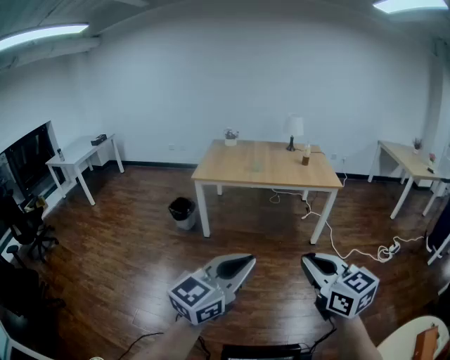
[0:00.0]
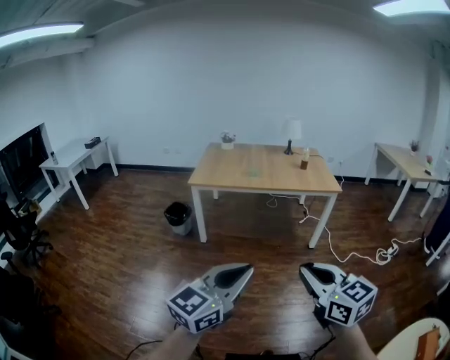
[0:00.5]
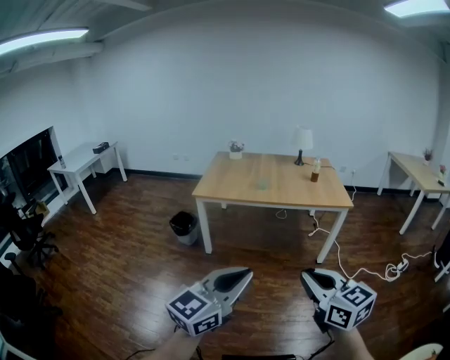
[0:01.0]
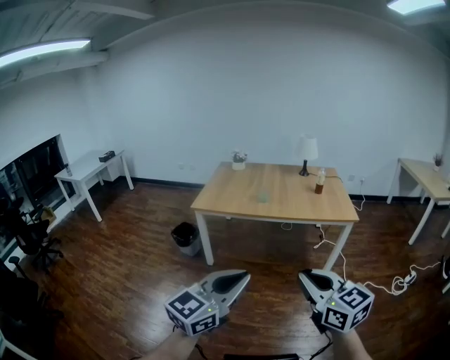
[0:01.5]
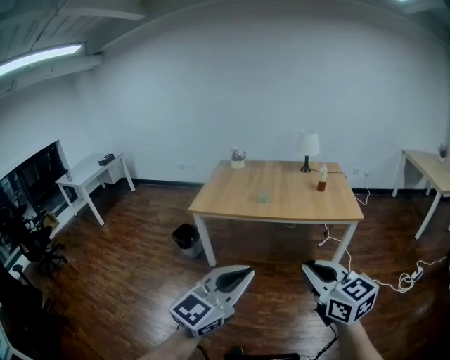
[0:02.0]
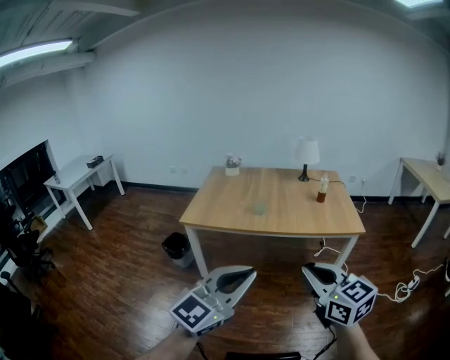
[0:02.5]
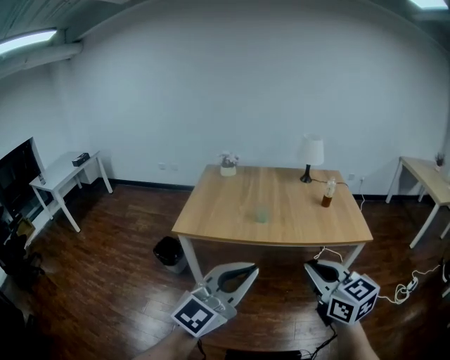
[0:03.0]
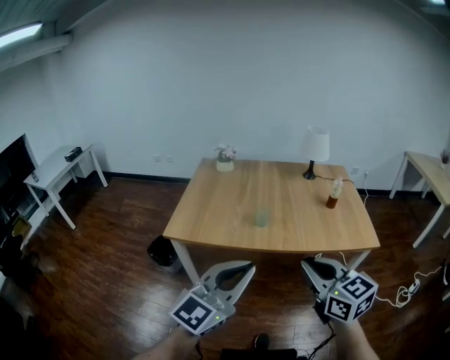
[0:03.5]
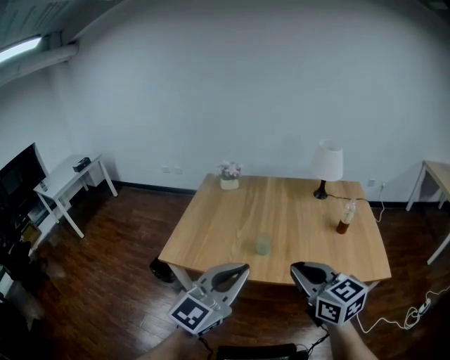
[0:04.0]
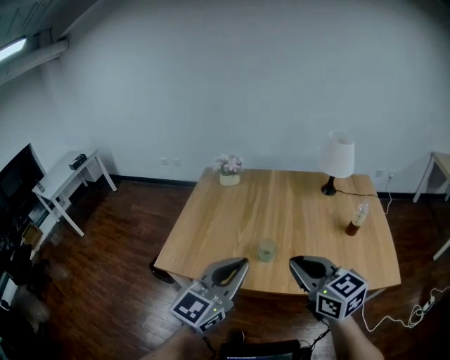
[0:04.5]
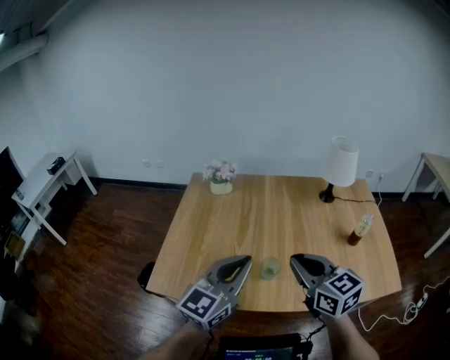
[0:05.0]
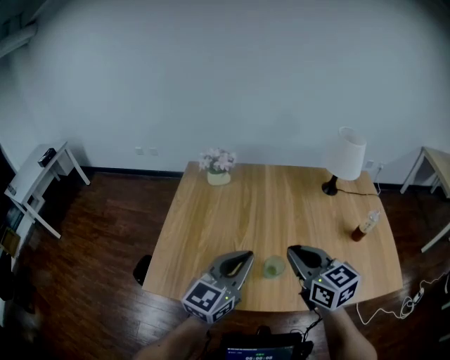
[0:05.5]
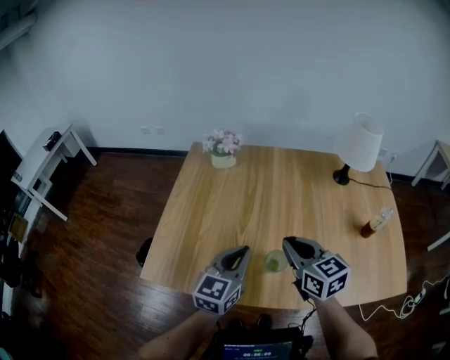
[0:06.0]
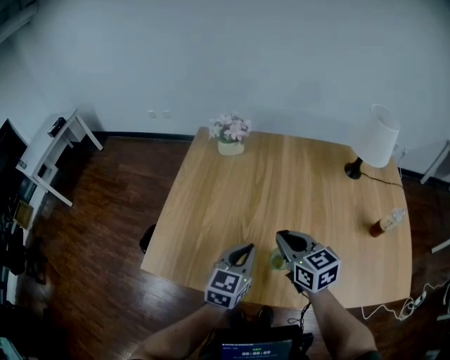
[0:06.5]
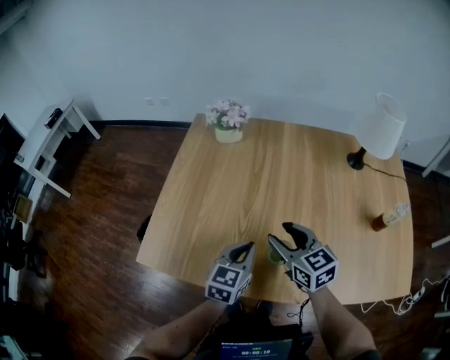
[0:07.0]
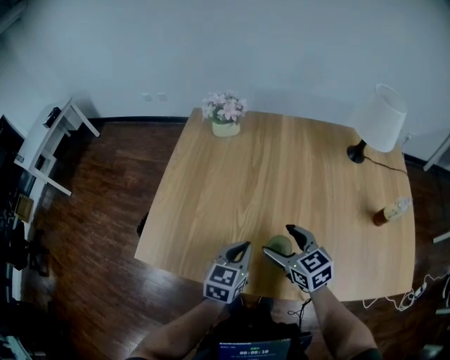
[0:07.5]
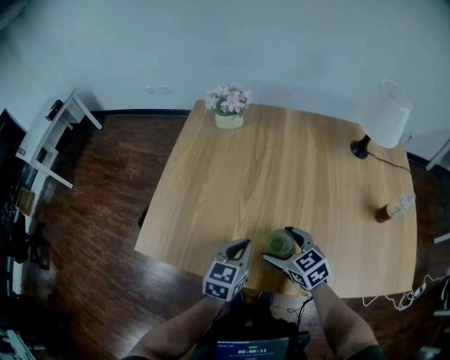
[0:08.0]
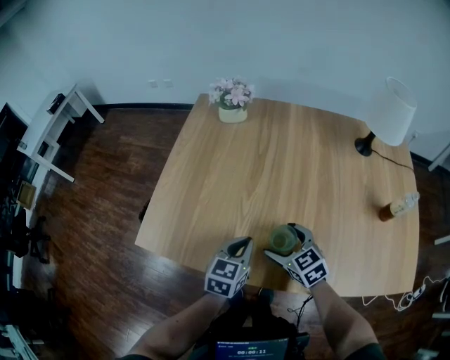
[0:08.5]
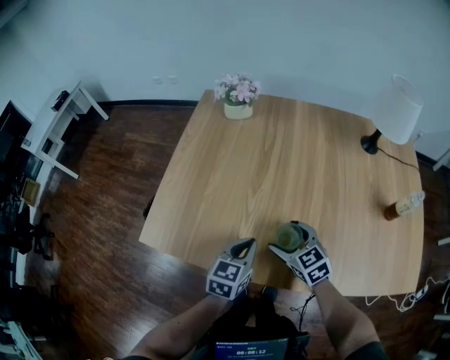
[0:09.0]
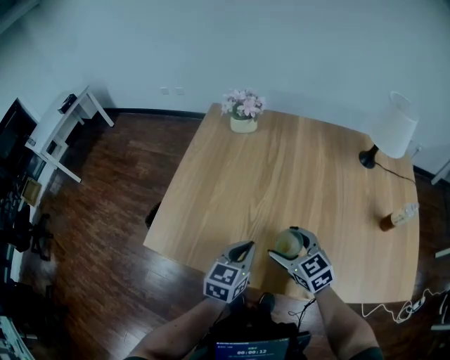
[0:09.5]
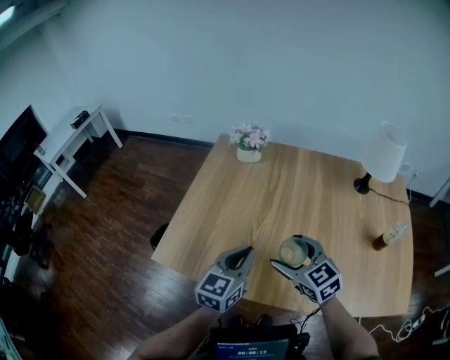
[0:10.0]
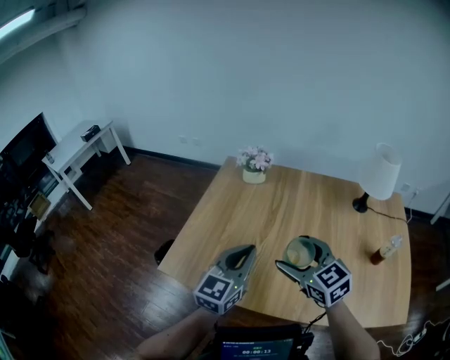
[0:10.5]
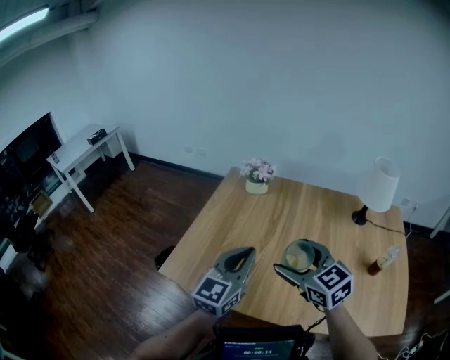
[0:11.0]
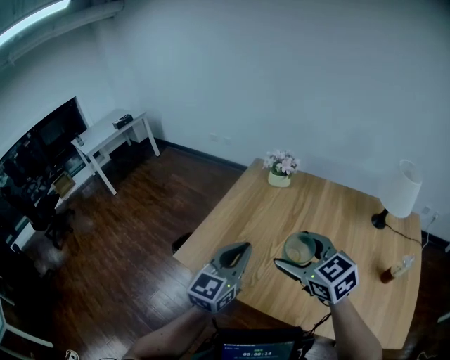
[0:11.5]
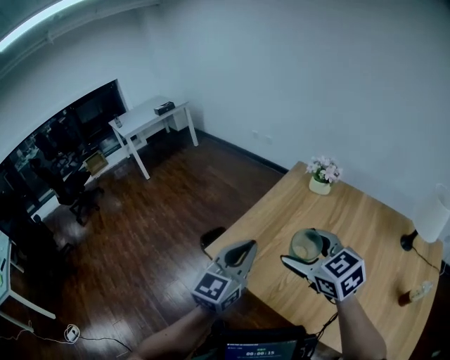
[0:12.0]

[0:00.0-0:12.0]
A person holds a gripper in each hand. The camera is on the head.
0:00.0 to 0:02.0: The grippers both shift forward by some 25 cm.
0:02.0 to 0:04.0: Both grippers are carried forward, roughly 50 cm.
0:04.0 to 0:06.0: Both grippers travel together forward and downward, roughly 35 cm. The left gripper rotates roughly 30 degrees.
0:06.0 to 0:08.0: Both grippers travel together downward, approximately 15 cm. The right gripper rotates some 20 degrees, and opens its fingers.
0:08.0 to 0:10.0: The two grippers go some 10 cm upward.
0:10.0 to 0:12.0: Both grippers travel together to the left and upward, roughly 20 cm. The left gripper rotates roughly 30 degrees, while the right gripper swivels about 20 degrees.

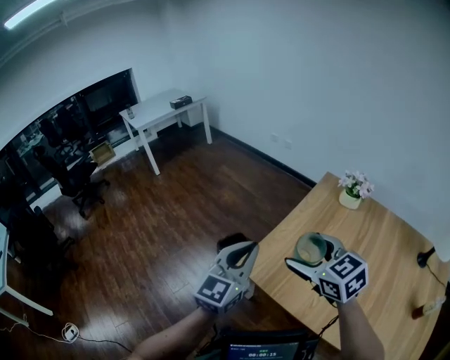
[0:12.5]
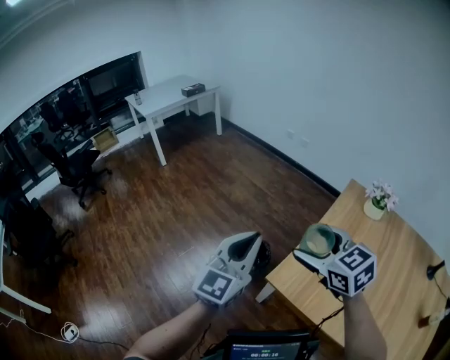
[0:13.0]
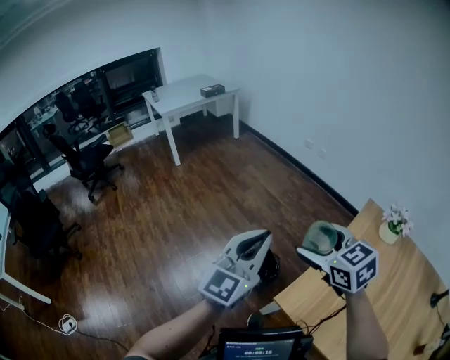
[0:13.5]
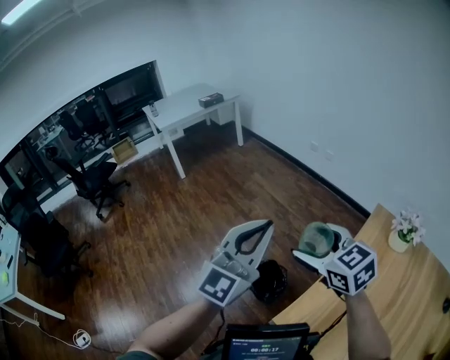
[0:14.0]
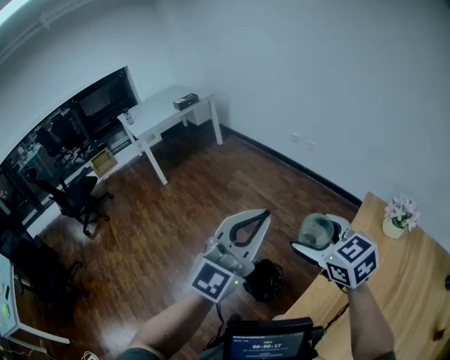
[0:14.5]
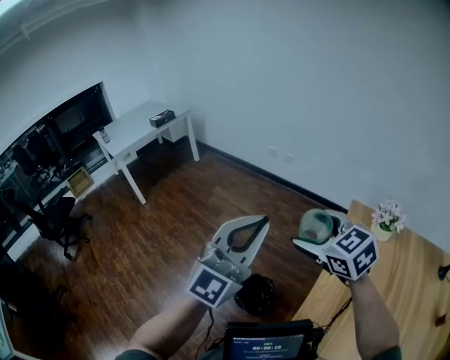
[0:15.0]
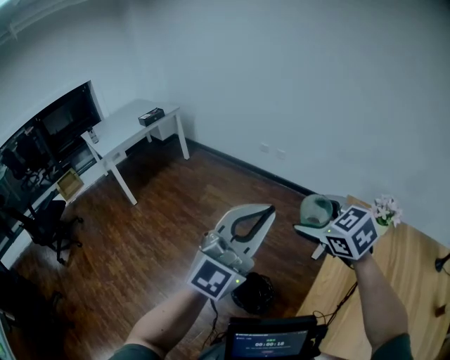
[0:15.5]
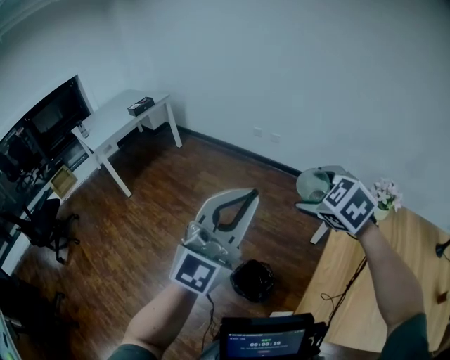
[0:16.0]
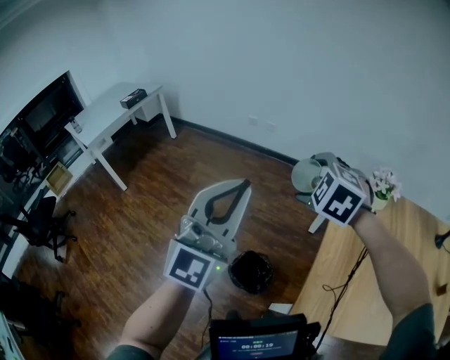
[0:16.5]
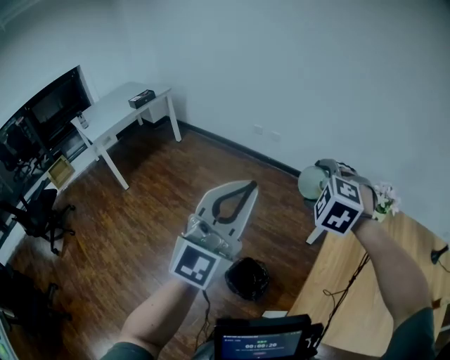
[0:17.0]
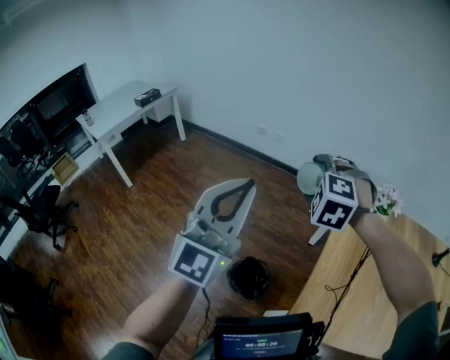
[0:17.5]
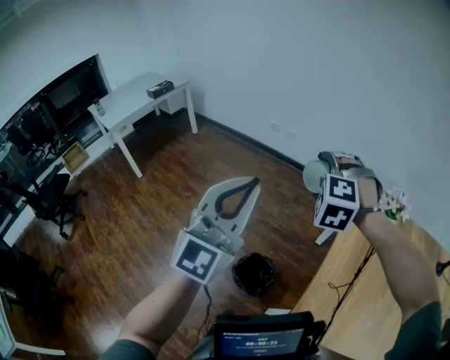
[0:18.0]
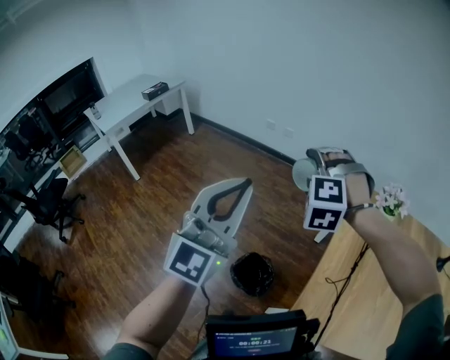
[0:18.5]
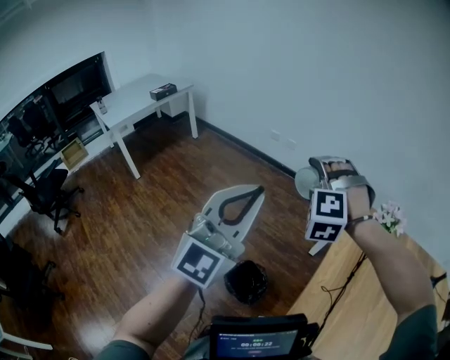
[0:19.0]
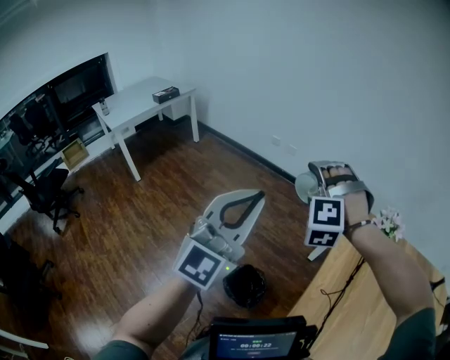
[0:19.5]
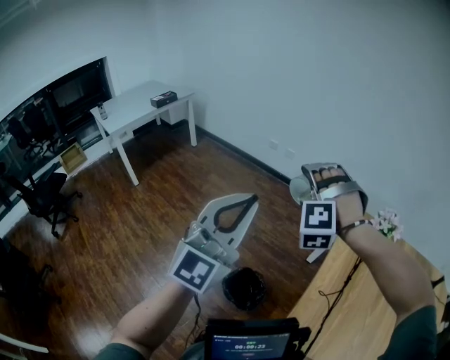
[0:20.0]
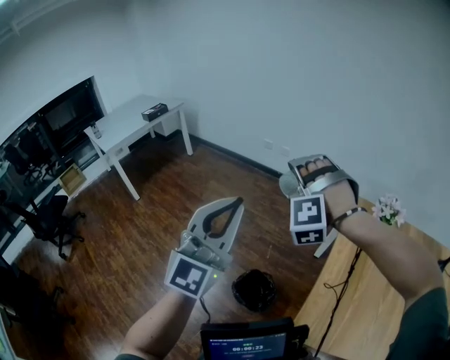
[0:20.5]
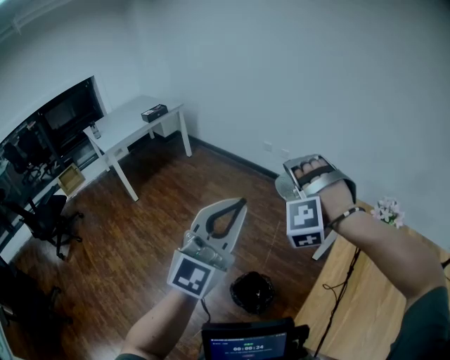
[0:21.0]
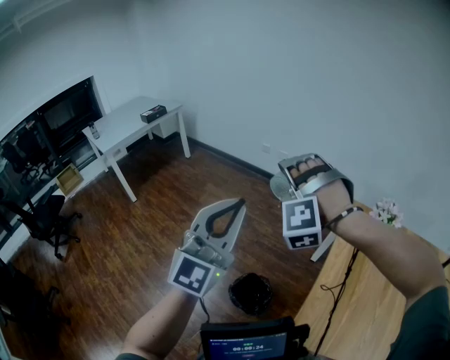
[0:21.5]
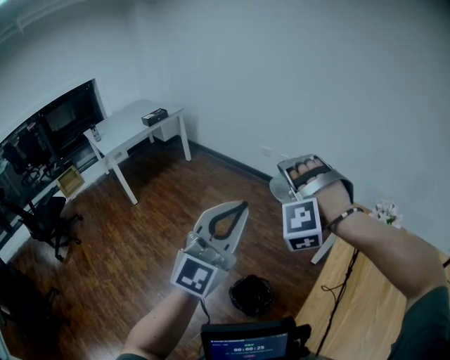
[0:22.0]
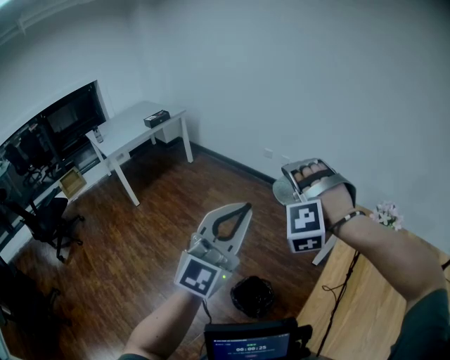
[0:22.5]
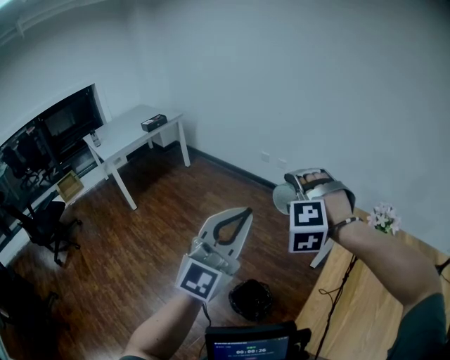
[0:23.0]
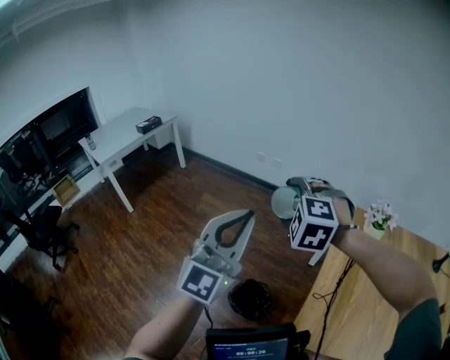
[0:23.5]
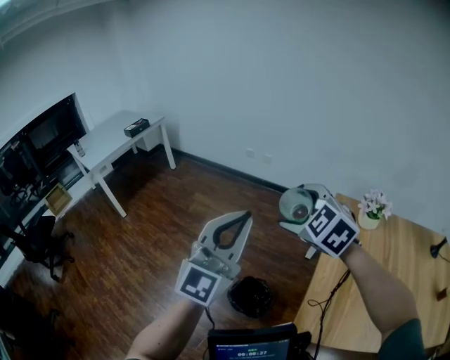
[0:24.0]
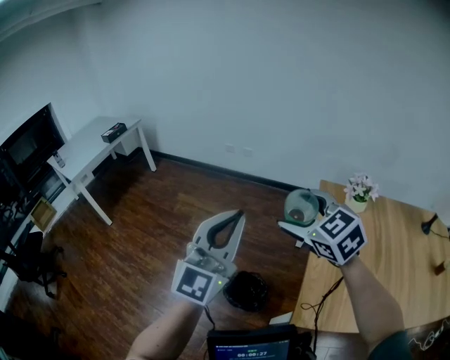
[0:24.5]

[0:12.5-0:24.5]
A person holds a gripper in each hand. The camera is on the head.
0:12.5 to 0:14.5: The left gripper goes roughly 30 cm forward, to the left and upward, and swivels some 30 degrees; the right gripper shifts approximately 30 cm forward and to the left.
0:14.5 to 0:16.5: The left gripper ends up some 10 cm from where it was, while the right gripper shifts by about 15 cm, and rotates approximately 50 degrees.
0:16.5 to 0:18.5: The right gripper rotates some 30 degrees.
0:18.5 to 0:20.5: The grippers move only a little.
0:20.5 to 0:22.5: The grippers make only small movements.
0:22.5 to 0:24.5: The right gripper goes approximately 10 cm to the right and backward, and rotates around the line of its fingers by about 80 degrees, clockwise from behind.

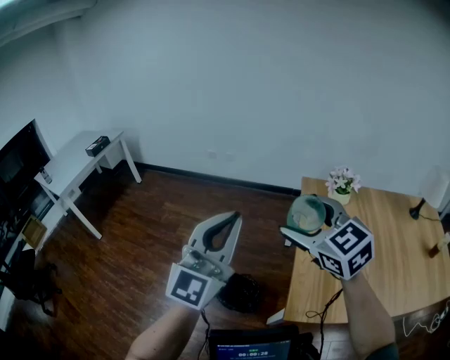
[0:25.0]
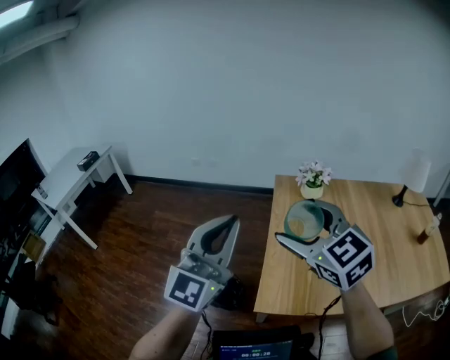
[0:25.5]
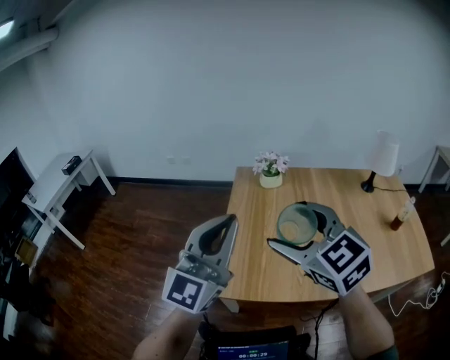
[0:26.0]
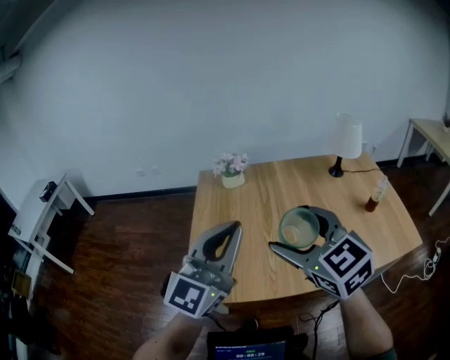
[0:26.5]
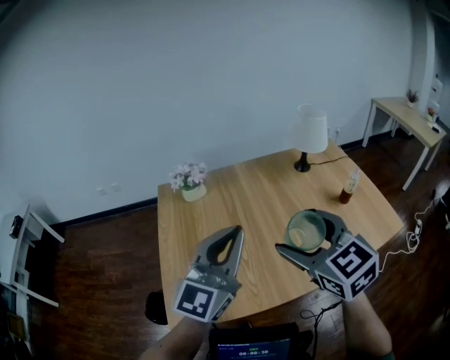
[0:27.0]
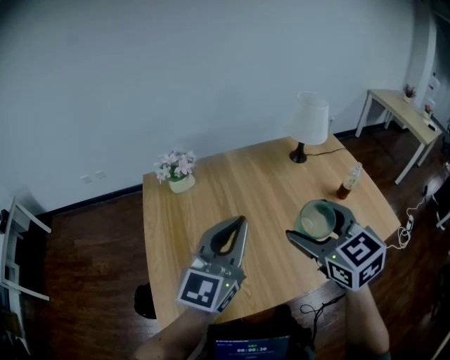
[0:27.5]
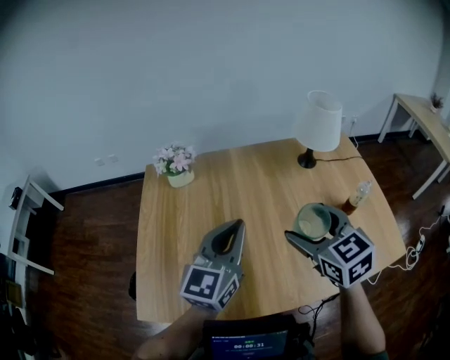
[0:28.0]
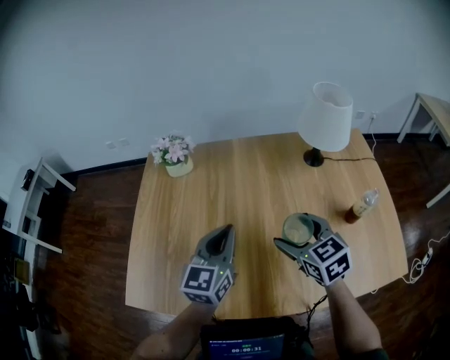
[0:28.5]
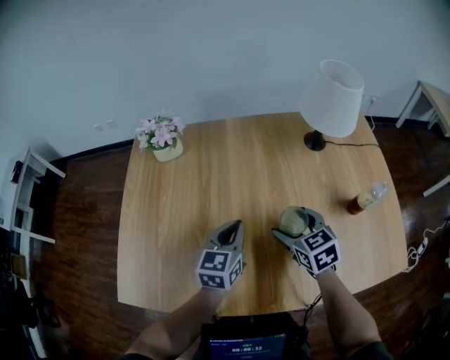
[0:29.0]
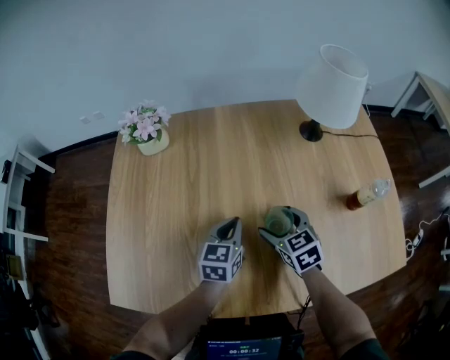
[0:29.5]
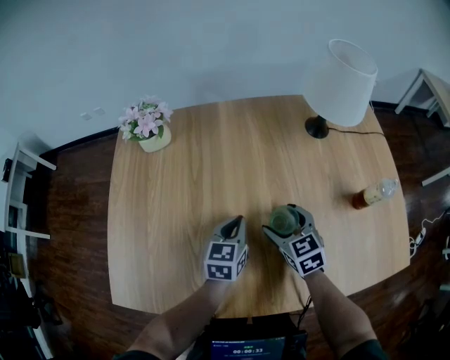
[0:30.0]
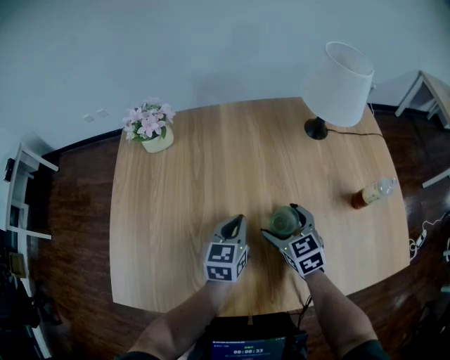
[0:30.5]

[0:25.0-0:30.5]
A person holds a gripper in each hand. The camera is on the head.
0:25.0 to 0:27.0: Both grippers are carried approximately 50 cm. The right gripper rotates approximately 30 degrees. Meanwhile the left gripper turns by roughly 30 degrees.
0:27.0 to 0:28.5: The grippers both shift downward, forward and to the right by some 25 cm. The left gripper swivels approximately 30 degrees.
0:28.5 to 0:30.5: The two grippers go roughly 15 cm downward.
